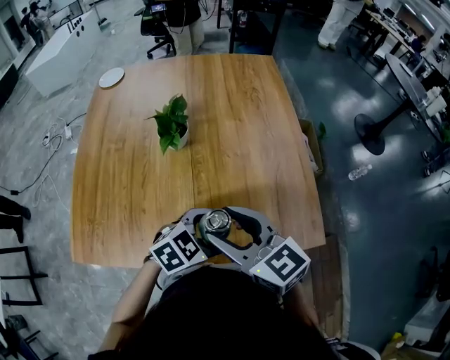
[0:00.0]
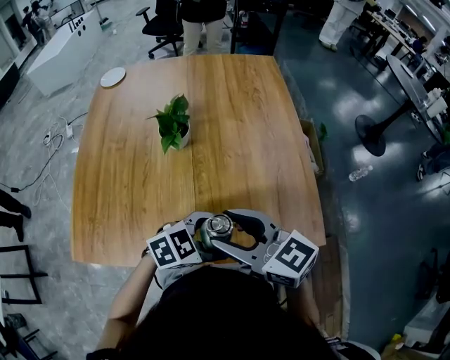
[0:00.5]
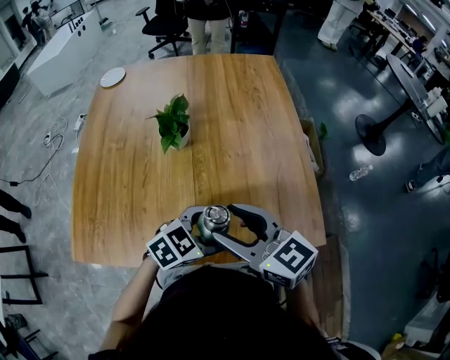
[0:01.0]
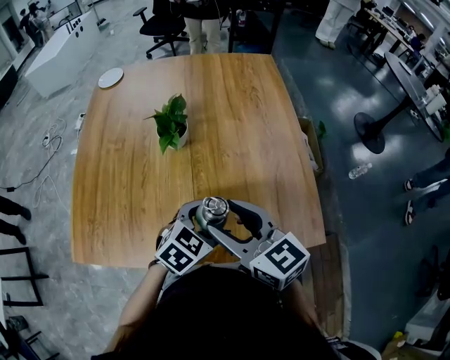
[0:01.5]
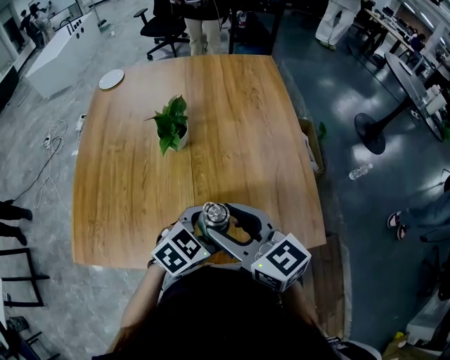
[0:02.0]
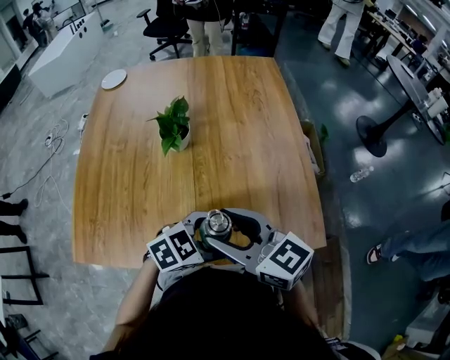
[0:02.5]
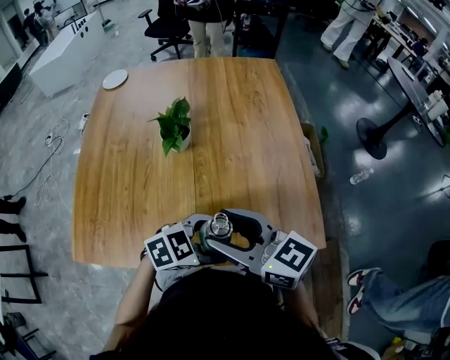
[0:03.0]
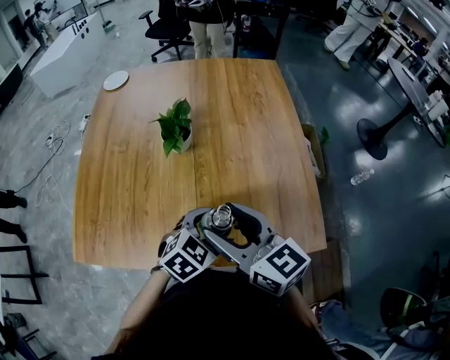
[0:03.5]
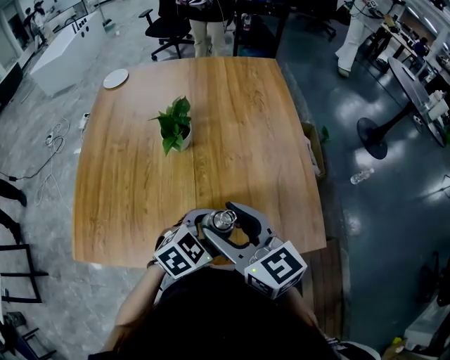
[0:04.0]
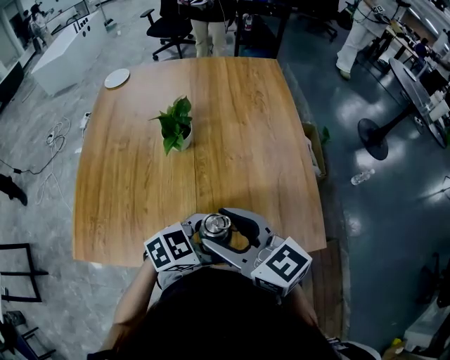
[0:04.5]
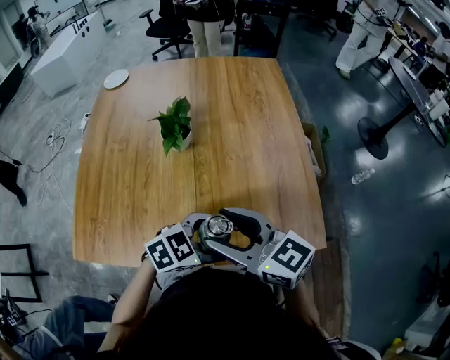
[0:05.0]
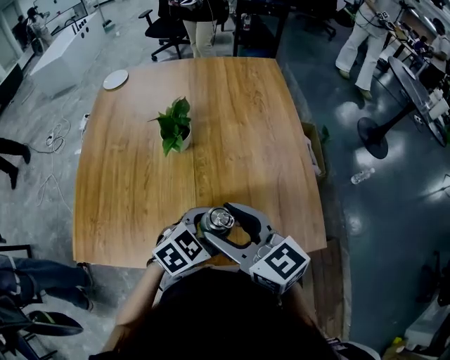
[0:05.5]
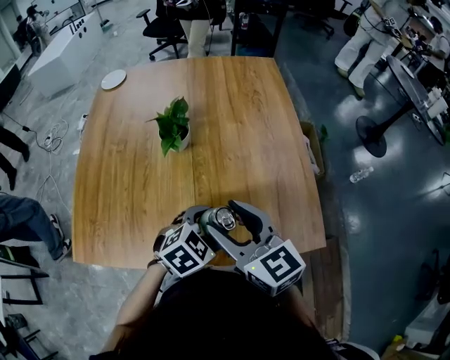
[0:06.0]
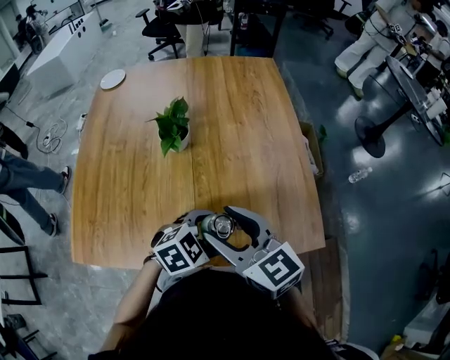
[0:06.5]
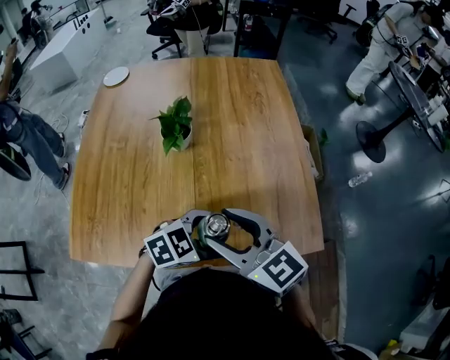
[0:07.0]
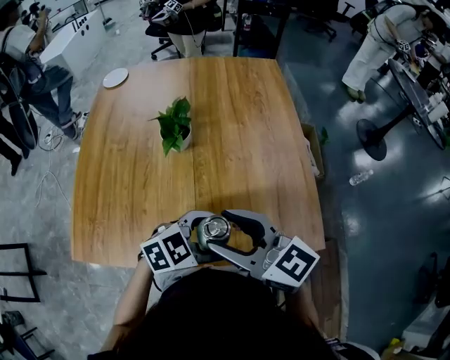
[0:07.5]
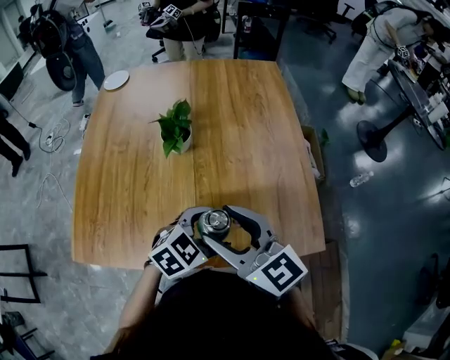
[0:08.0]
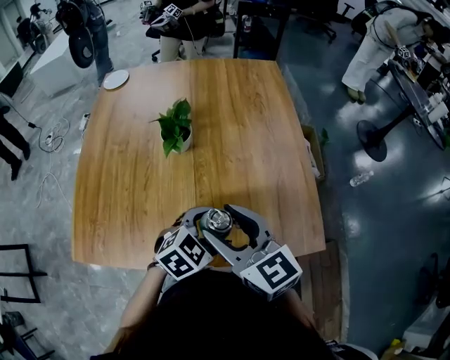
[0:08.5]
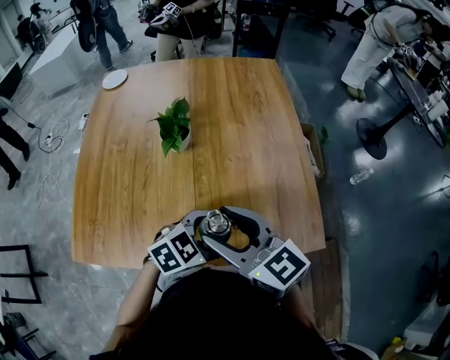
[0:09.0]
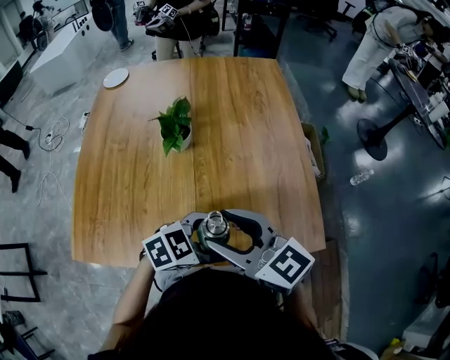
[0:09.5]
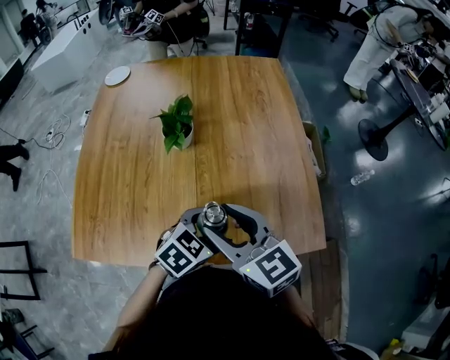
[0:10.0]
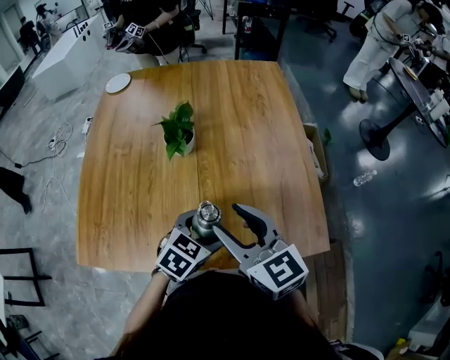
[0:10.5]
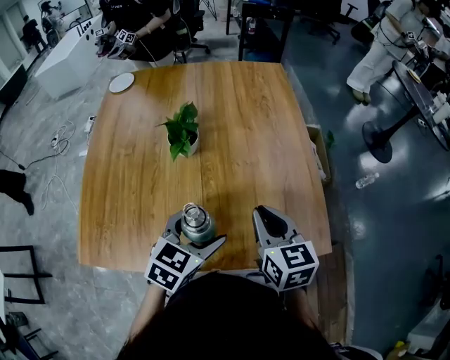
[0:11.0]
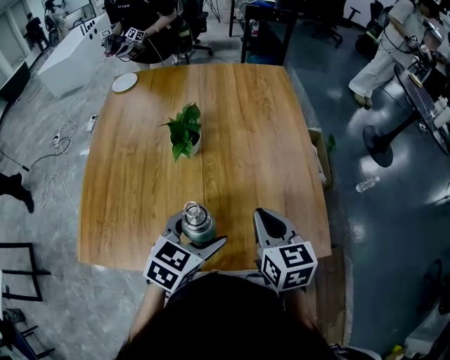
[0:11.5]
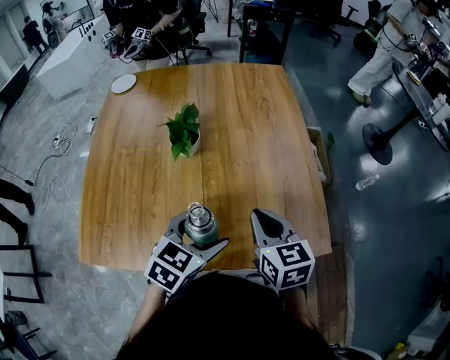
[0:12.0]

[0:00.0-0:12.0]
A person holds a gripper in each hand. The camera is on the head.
0:00.0 to 0:06.0: The grippers move only a little.
0:08.0 to 0:10.0: The grippers make only small movements.
0:10.0 to 0:12.0: The right gripper heads to the right, covering some 10 cm, swivels approximately 30 degrees, and closes its fingers. Meanwhile the left gripper goes roughly 5 cm upward.

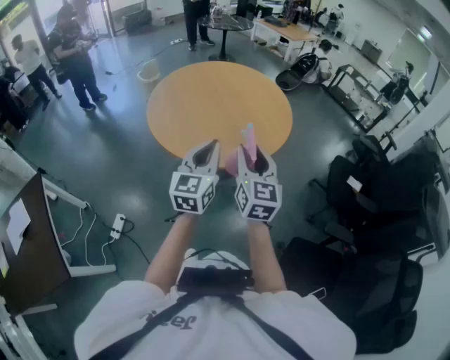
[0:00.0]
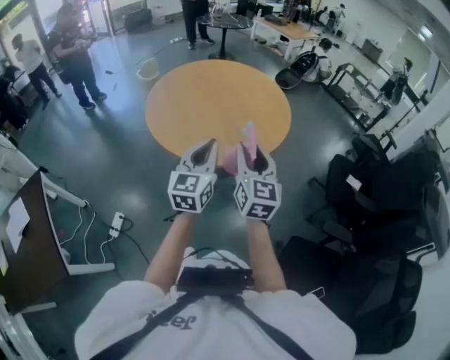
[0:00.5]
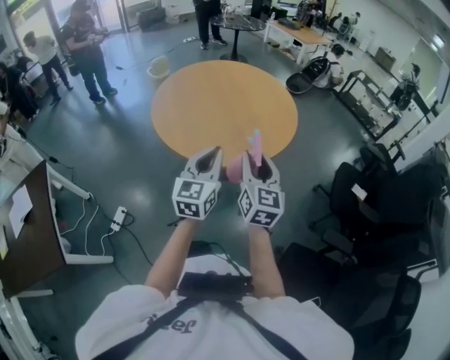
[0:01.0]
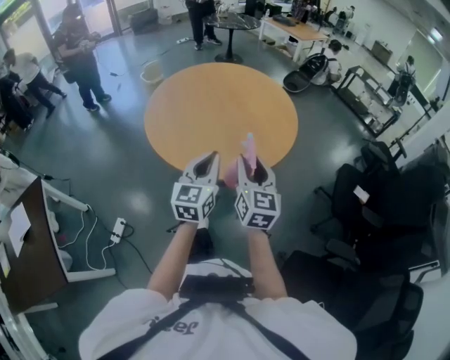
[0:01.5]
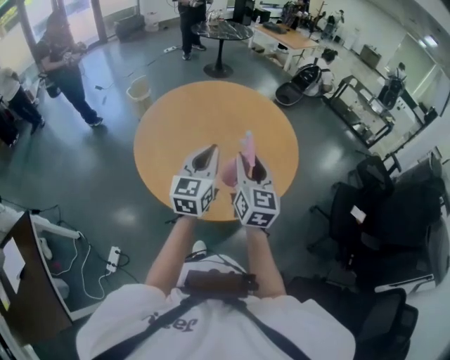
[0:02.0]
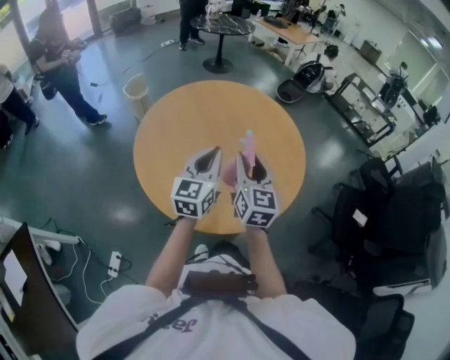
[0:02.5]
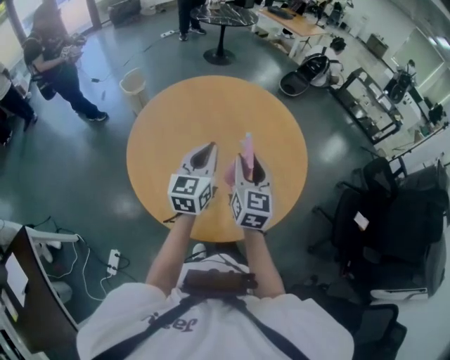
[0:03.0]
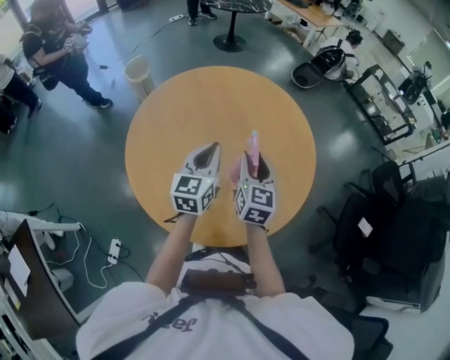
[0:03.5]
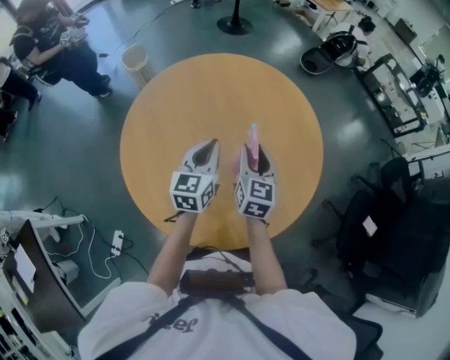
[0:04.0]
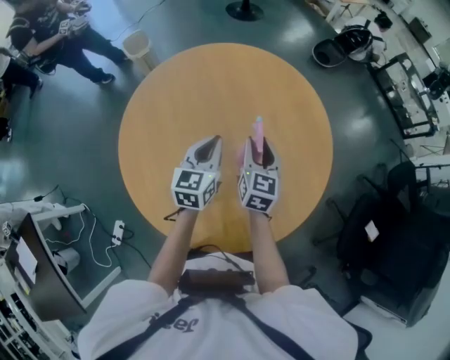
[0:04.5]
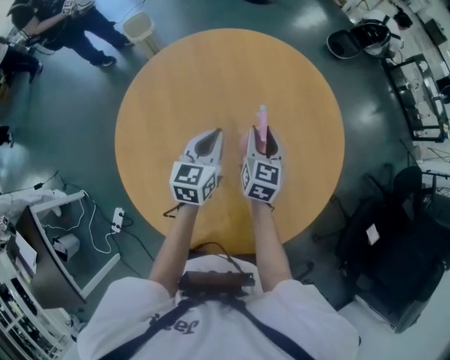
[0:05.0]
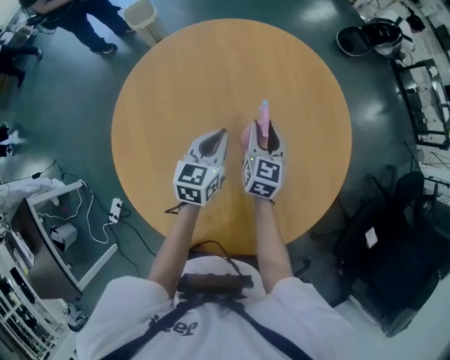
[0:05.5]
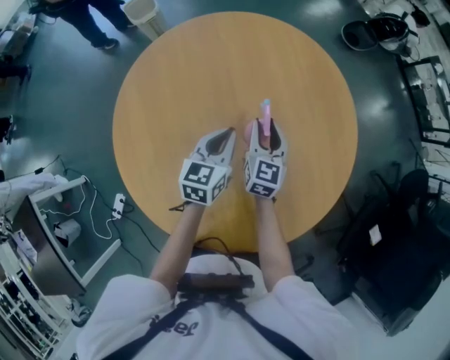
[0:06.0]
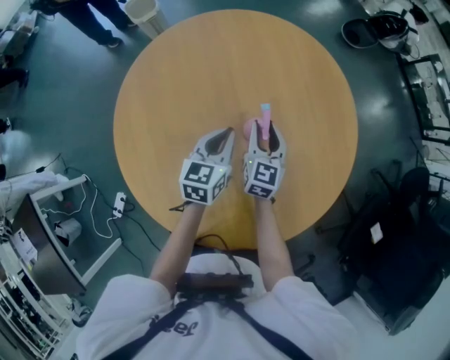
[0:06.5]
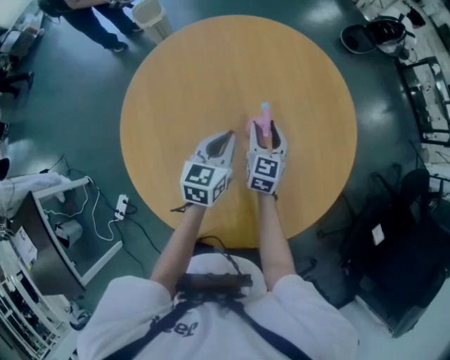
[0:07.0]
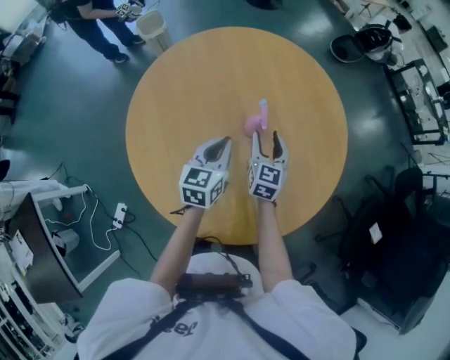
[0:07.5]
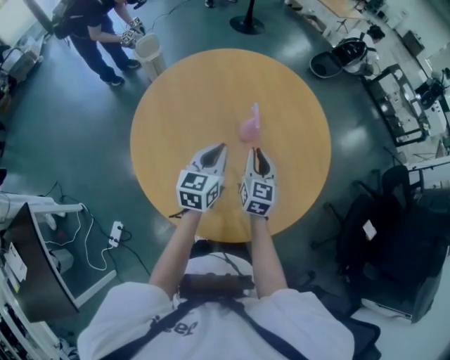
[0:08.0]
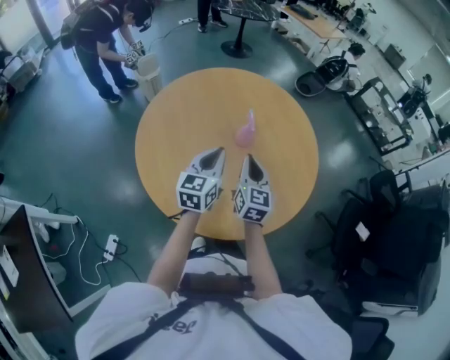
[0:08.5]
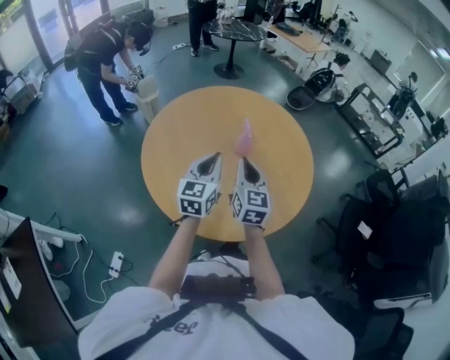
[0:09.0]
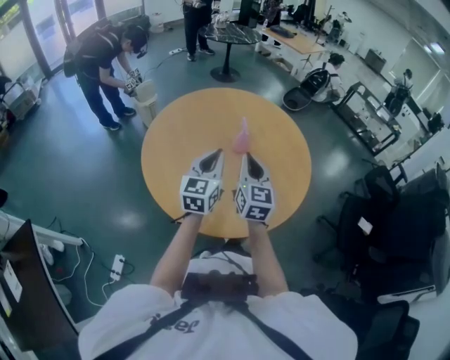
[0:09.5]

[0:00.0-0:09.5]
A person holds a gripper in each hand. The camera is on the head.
0:00.0 to 0:02.0: The two grippers go approximately 25 cm forward.
0:02.0 to 0:04.0: Both grippers travel together forward and downward, some 25 cm.
0:04.0 to 0:05.5: The left gripper goes about 15 cm downward and forward. The right gripper goes approximately 15 cm forward and downward.
0:05.5 to 0:07.5: The two grippers go about 5 cm backward.
0:07.5 to 0:09.5: Both grippers travel together upward and backward, roughly 20 cm. The left gripper turns by roughly 20 degrees. The right gripper closes.

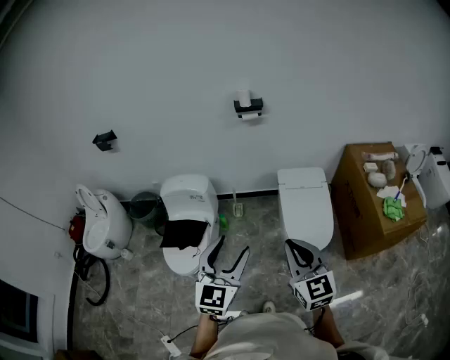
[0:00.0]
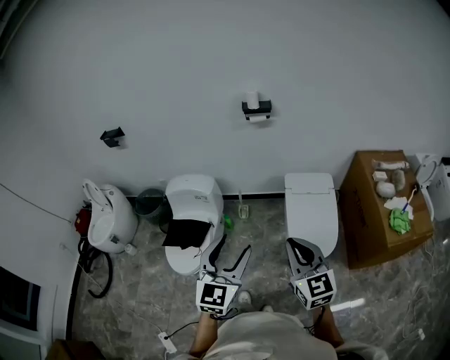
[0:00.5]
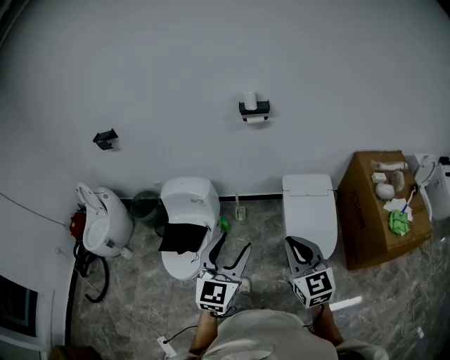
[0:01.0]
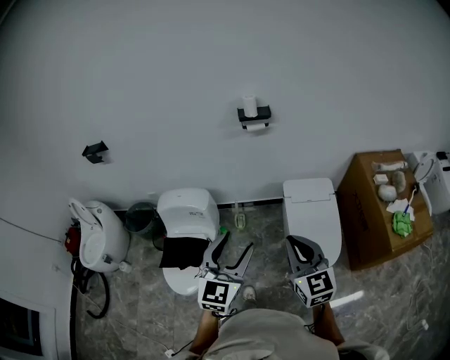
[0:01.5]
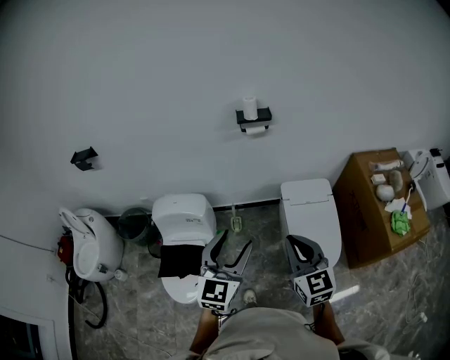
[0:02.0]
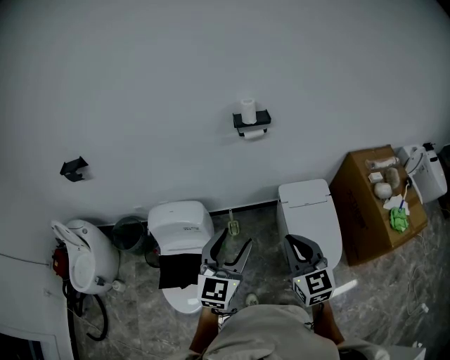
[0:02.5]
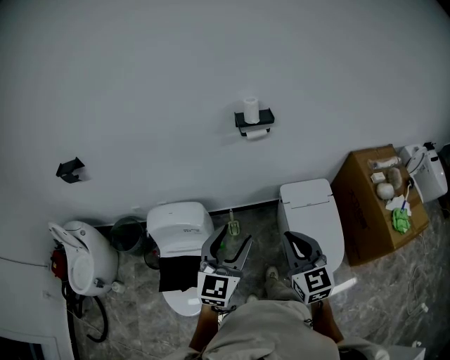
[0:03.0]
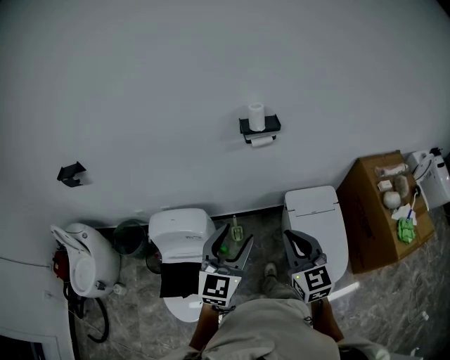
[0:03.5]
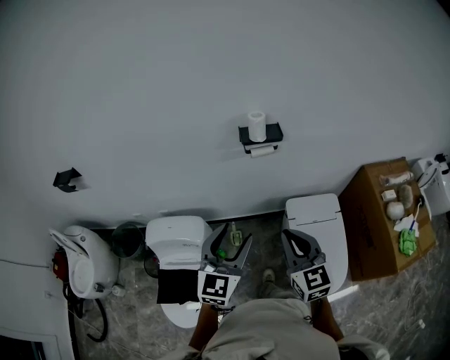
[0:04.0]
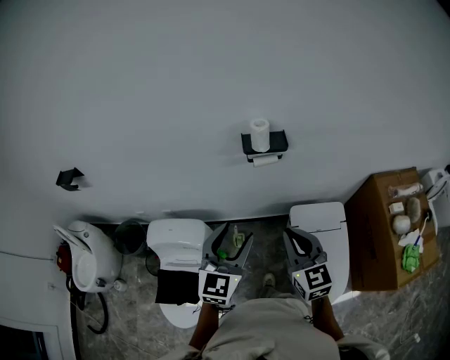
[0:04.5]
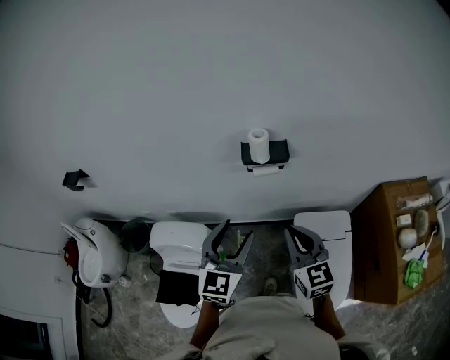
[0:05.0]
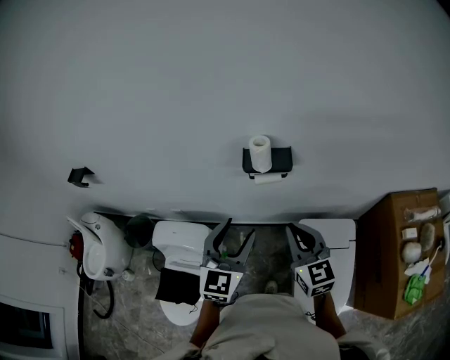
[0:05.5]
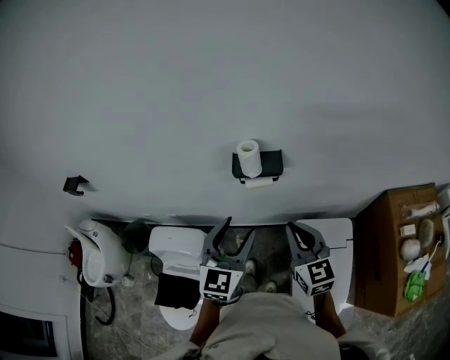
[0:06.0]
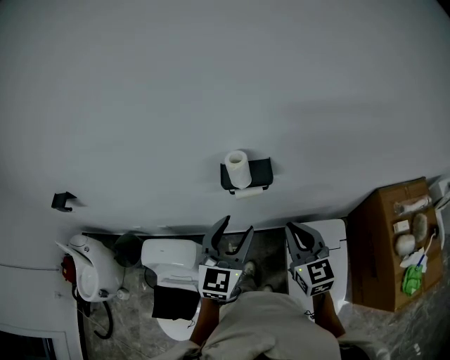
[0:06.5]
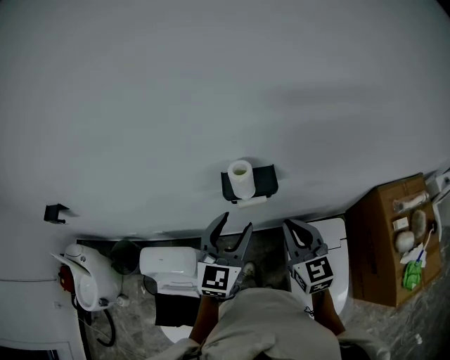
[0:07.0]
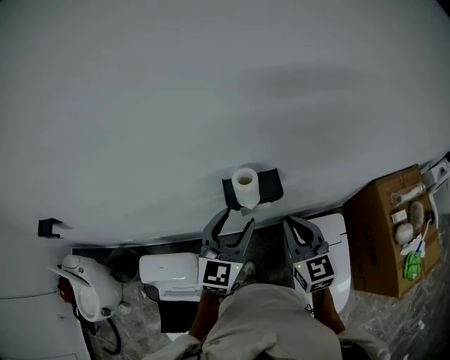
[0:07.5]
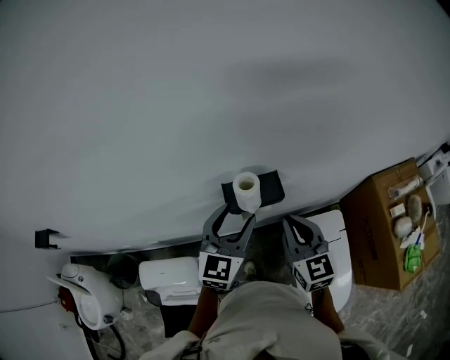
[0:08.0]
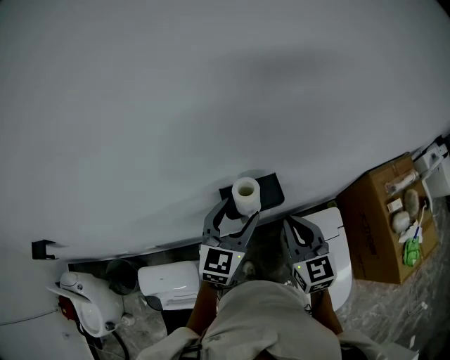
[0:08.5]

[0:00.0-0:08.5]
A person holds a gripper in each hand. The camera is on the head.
0:00.0 to 0:02.0: The grippers both shift forward by approximately 20 cm.
0:02.0 to 0:04.0: Both grippers travel together forward, approximately 20 cm.
0:04.0 to 0:06.5: The grippers both shift forward and to the right by roughly 25 cm.
0:06.5 to 0:08.5: The right gripper heads forward, covering roughly 10 cm; the left gripper moves forward, roughly 15 cm.
